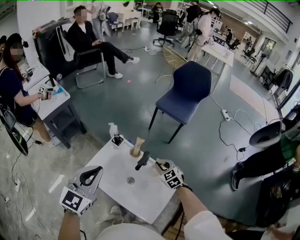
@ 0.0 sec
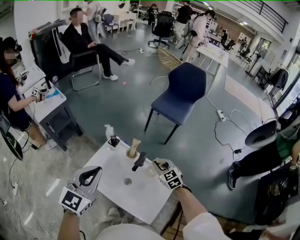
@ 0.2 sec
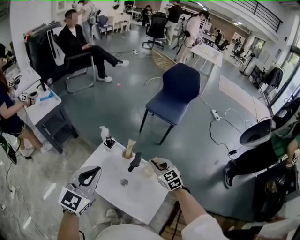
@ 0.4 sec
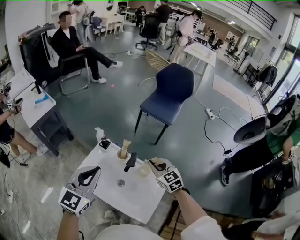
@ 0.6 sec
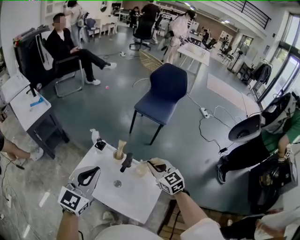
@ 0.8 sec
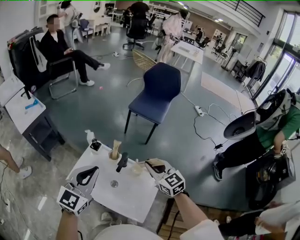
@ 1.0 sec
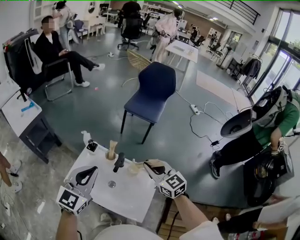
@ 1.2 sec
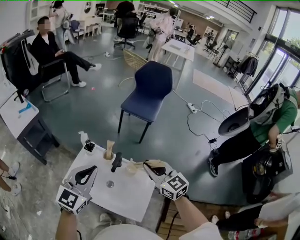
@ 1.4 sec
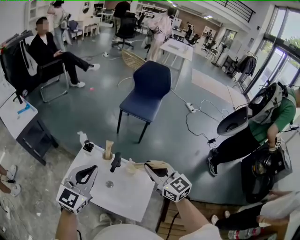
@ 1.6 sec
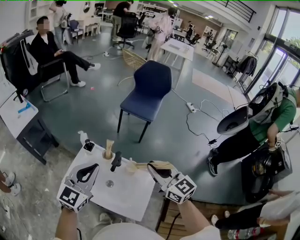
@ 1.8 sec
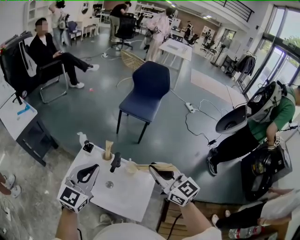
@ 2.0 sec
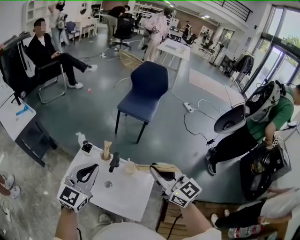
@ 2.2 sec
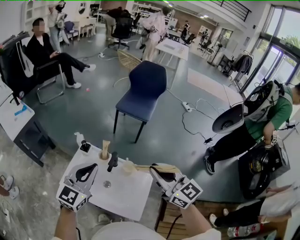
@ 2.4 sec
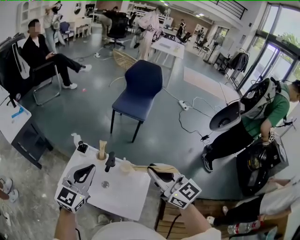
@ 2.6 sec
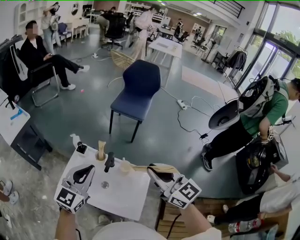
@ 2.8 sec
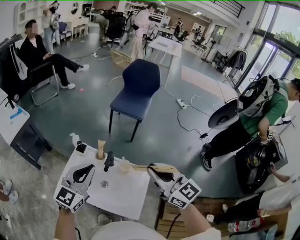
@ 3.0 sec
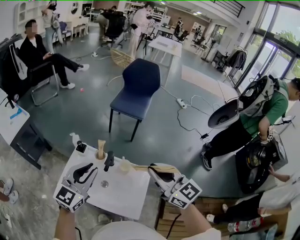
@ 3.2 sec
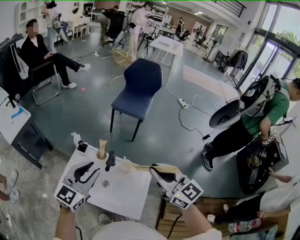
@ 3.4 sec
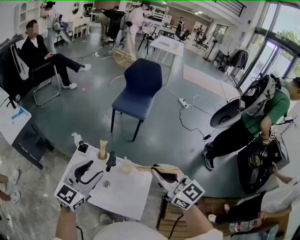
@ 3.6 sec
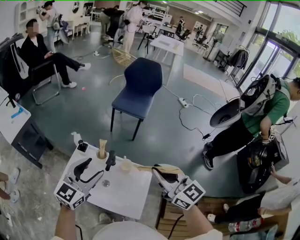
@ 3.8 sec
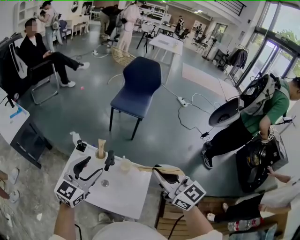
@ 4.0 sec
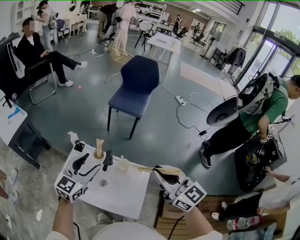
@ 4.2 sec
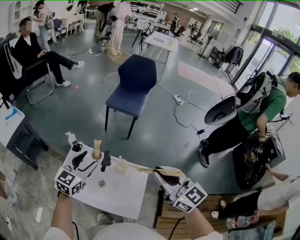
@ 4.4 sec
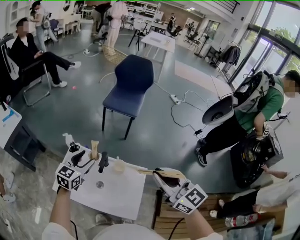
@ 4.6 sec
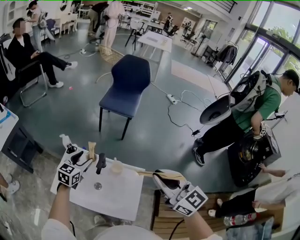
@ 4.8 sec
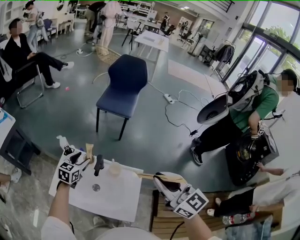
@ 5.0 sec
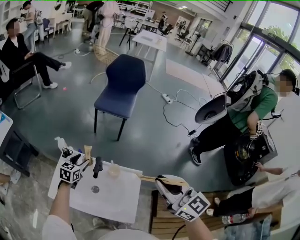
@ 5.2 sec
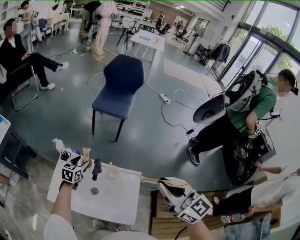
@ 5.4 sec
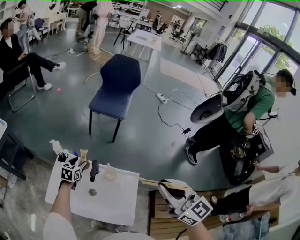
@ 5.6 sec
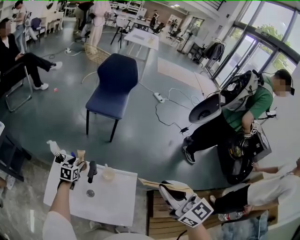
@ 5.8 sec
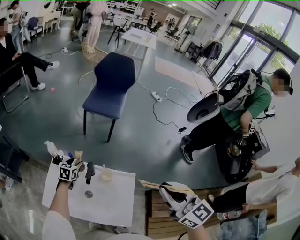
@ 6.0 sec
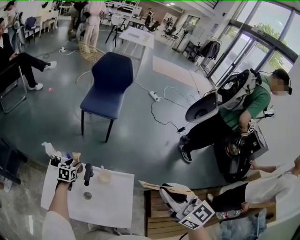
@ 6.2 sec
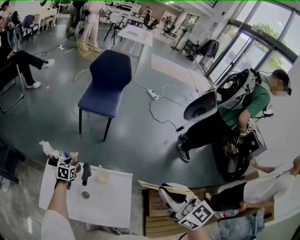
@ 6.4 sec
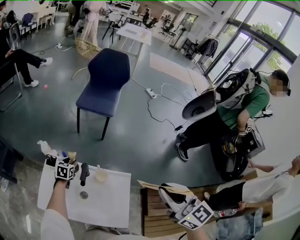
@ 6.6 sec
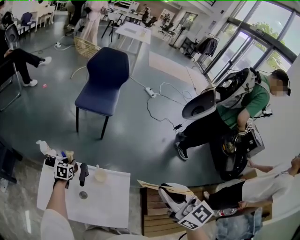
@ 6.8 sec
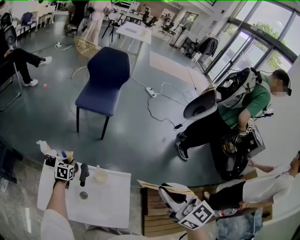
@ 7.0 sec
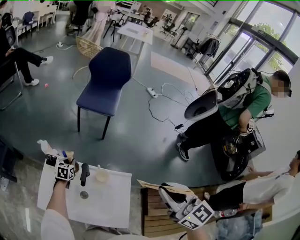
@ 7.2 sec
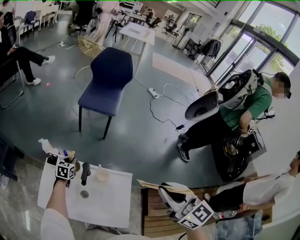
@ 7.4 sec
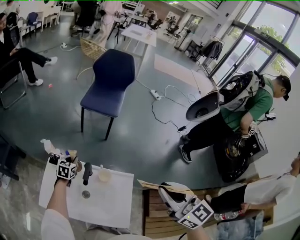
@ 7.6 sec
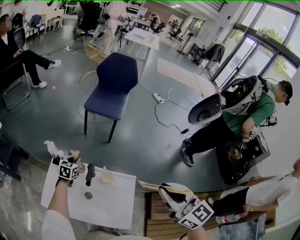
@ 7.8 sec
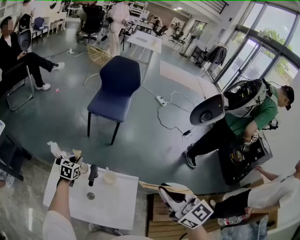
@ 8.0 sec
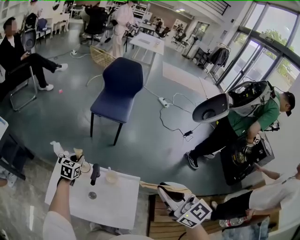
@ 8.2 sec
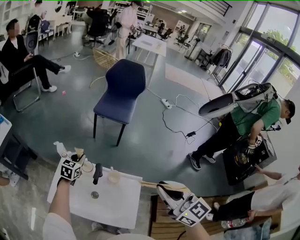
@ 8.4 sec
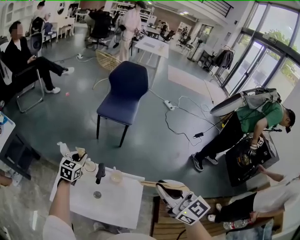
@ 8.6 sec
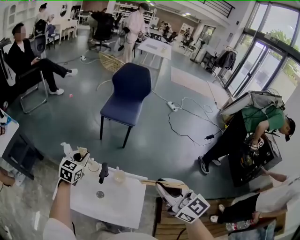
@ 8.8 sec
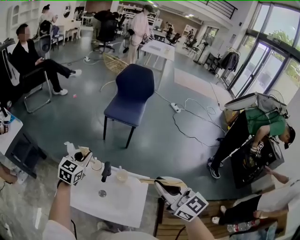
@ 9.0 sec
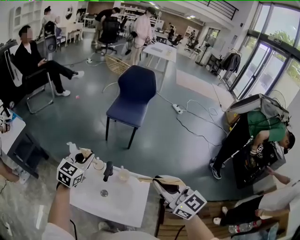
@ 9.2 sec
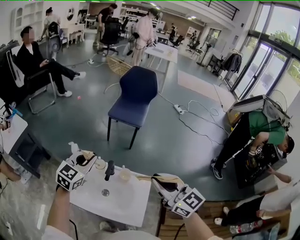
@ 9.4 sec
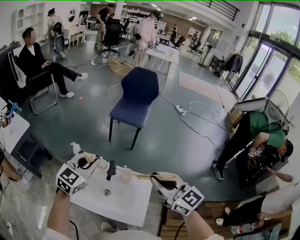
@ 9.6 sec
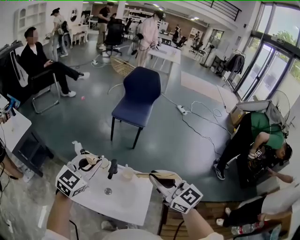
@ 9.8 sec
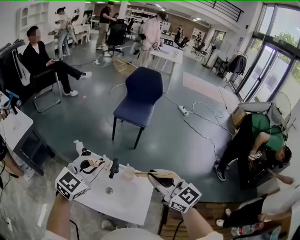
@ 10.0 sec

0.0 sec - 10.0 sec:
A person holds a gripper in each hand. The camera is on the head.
0.0 sec - 1.4 sec: The left gripper heads to the right, covering roughly 5 cm, while the right gripper shifts some 25 cm upward, and turns by some 30 degrees.
1.4 sec - 2.8 sec: The right gripper shifts roughly 10 cm upward and backward.
2.8 sec - 4.2 sec: The left gripper moves about 5 cm, and opens its fingers.
4.2 sec - 5.8 sec: The left gripper goes some 30 cm downward and forward, and tilts its fingers roughly 30 degrees downward; the right gripper changes place by approximately 5 cm.
5.8 sec - 7.2 sec: The left gripper moves some 5 cm, and closes.
7.2 sec - 8.6 sec: The left gripper moves upward, roughly 15 cm.
8.6 sec - 10.0 sec: The right gripper moves to the left, some 5 cm, while the left gripper travels upward and backward by approximately 25 cm, and turns by approximately 30 degrees.

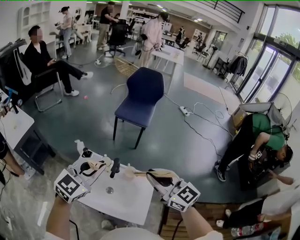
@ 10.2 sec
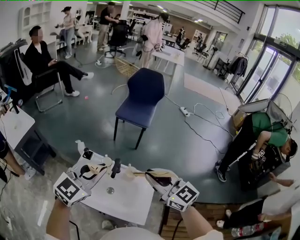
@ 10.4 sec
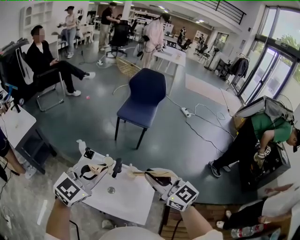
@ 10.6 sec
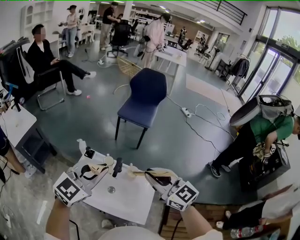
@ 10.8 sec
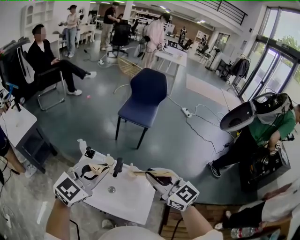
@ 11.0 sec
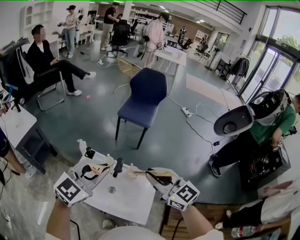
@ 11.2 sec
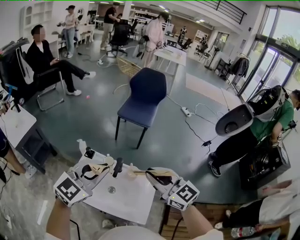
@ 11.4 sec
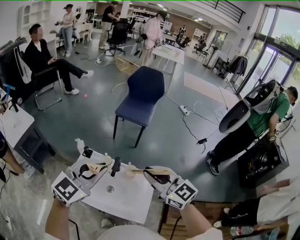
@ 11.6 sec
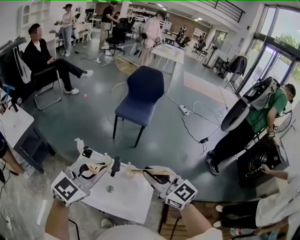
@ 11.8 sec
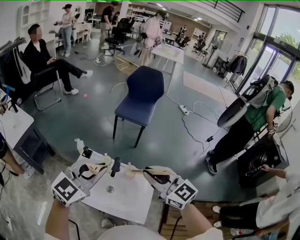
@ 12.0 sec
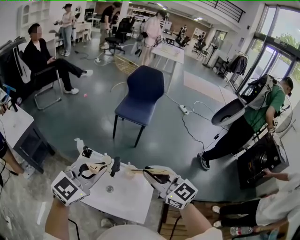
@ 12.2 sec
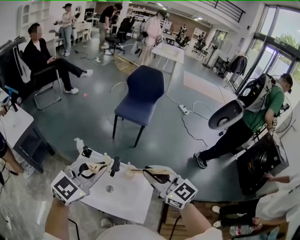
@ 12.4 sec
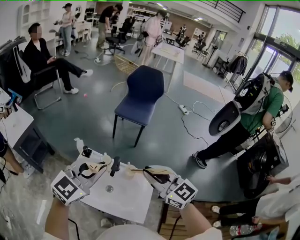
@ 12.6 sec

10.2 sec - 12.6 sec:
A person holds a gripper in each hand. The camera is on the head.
10.2 sec - 11.4 sec: The grippers make only small movements.
11.4 sec - 12.6 sec: The two grippers keep their place.

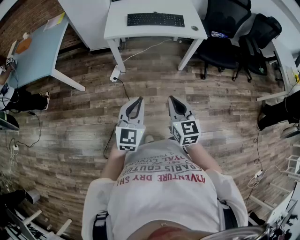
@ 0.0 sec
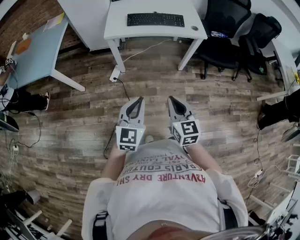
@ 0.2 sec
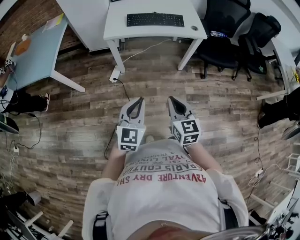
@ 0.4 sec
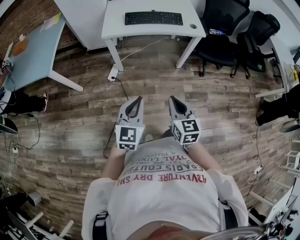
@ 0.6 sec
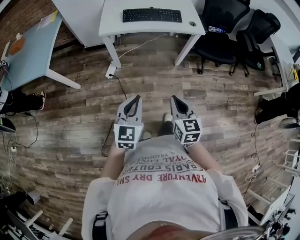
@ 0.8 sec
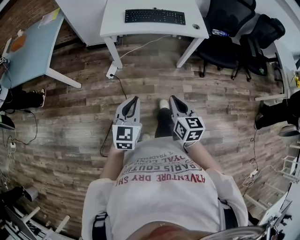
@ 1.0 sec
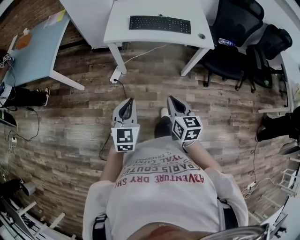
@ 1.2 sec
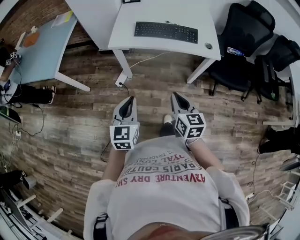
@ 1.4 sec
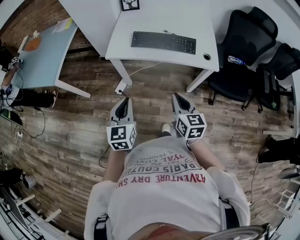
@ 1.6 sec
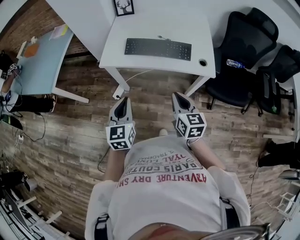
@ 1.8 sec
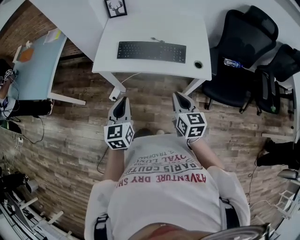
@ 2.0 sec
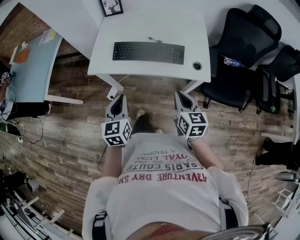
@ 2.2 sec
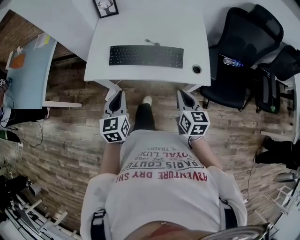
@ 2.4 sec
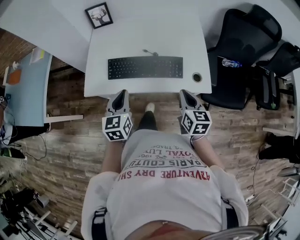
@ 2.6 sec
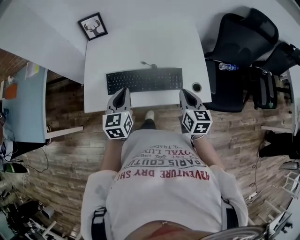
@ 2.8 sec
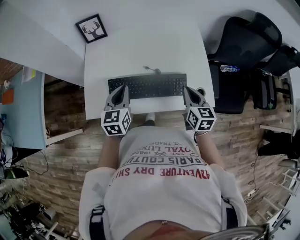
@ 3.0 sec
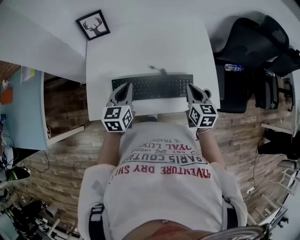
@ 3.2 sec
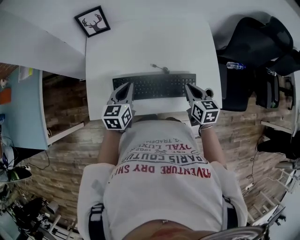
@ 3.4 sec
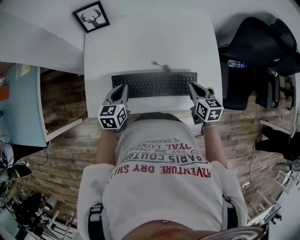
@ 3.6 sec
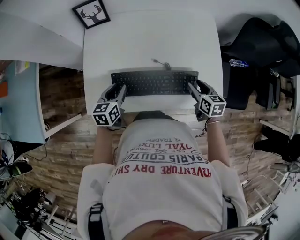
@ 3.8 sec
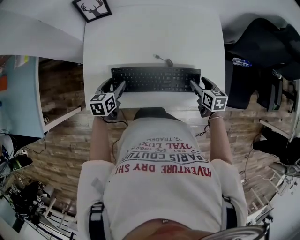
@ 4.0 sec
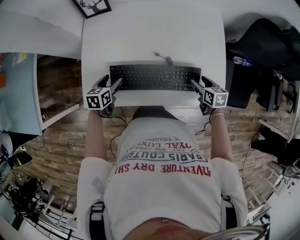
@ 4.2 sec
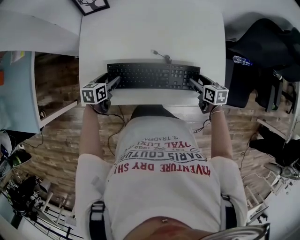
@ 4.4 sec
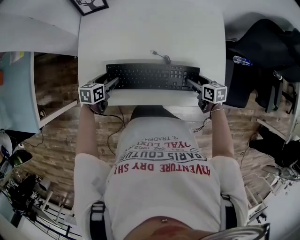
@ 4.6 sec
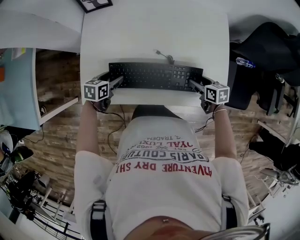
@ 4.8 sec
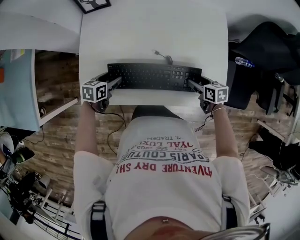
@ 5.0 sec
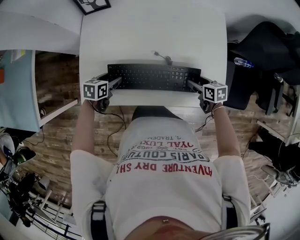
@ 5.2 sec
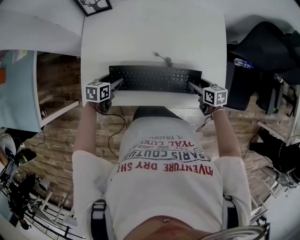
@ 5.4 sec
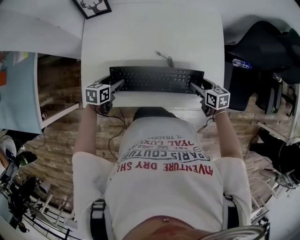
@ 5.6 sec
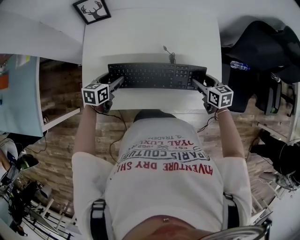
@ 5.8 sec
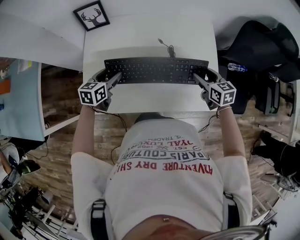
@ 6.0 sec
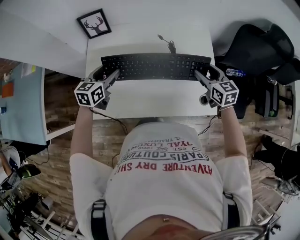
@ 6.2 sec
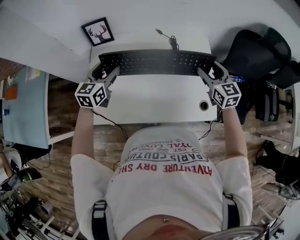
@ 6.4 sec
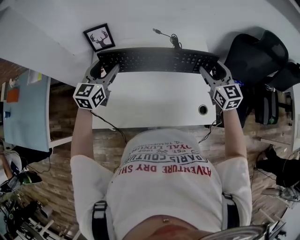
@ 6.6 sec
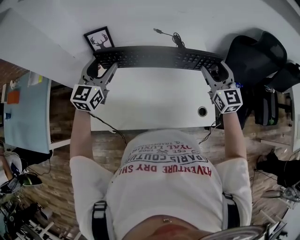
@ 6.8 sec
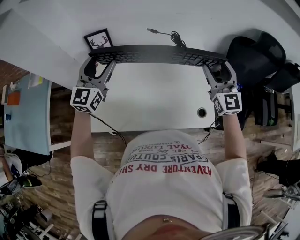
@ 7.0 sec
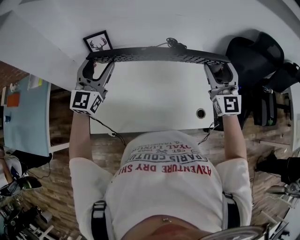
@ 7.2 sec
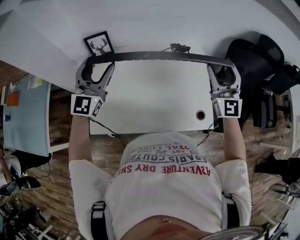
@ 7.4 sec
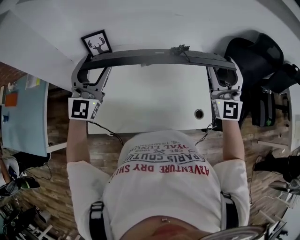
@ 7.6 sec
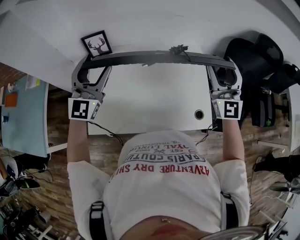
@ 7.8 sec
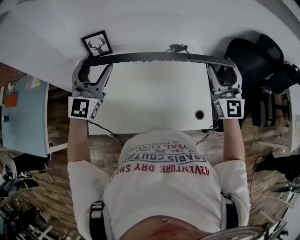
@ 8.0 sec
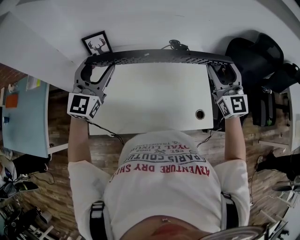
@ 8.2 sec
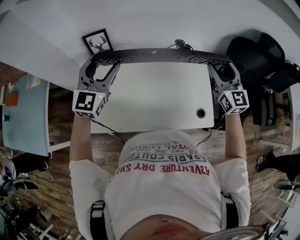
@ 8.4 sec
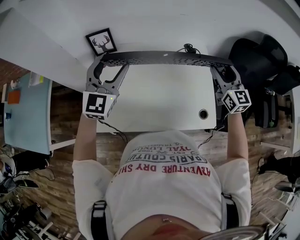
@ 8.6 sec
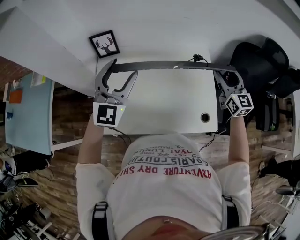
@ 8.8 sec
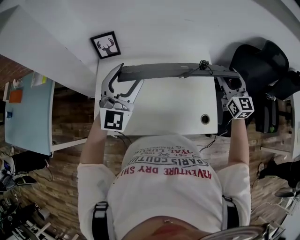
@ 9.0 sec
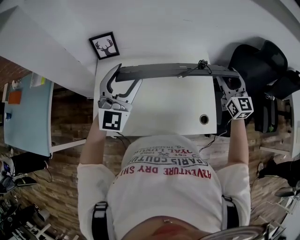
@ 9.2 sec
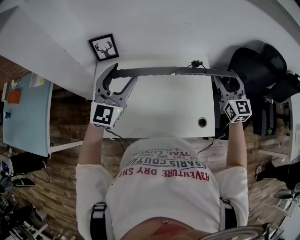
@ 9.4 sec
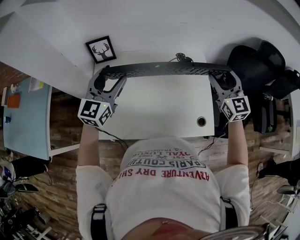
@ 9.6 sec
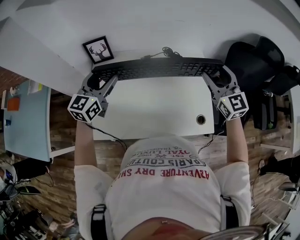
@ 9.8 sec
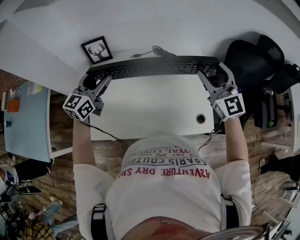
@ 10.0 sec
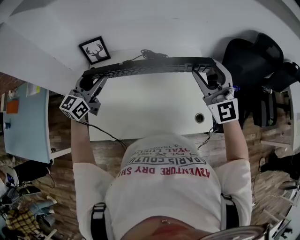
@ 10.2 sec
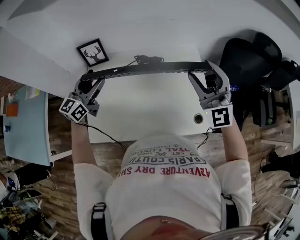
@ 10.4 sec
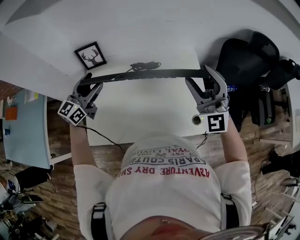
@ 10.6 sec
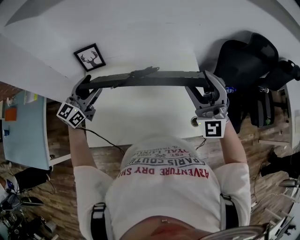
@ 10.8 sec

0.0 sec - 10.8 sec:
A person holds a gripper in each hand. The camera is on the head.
0.0 sec - 1.6 sec: Both grippers move forward, roughly 25 cm. The left gripper rotates about 30 degrees.
1.6 sec - 3.0 sec: The right gripper moves forward and to the right, approximately 40 cm. The left gripper travels forward by roughly 40 cm.
3.0 sec - 4.6 sec: The right gripper travels downward by some 20 cm, turns by approximately 40 degrees, and opens up, while the left gripper moves downward and to the left, approximately 25 cm, swivels about 40 degrees, and opens its fingers.
4.6 sec - 6.2 sec: The left gripper is displaced upward and forward by some 20 cm, and rotates approximately 30 degrees. Meanwhile the right gripper moves upward, approximately 20 cm, and changes its angle by roughly 30 degrees.
6.2 sec - 7.8 sec: The grippers both shift upward by roughly 25 cm. The right gripper tips its fingers upward by about 40 degrees, while the left gripper tips its fingers upward by roughly 40 degrees.
7.8 sec - 9.2 sec: The right gripper travels downward and to the right by about 10 cm, and swivels about 30 degrees, while the left gripper travels to the right by roughly 5 cm.
9.2 sec - 10.8 sec: The left gripper shifts approximately 15 cm to the left, downward and forward, and changes its angle by about 40 degrees, while the right gripper moves to the left, upward and backward, some 15 cm, and rotates approximately 50 degrees.
